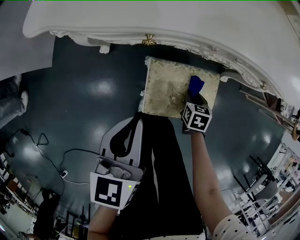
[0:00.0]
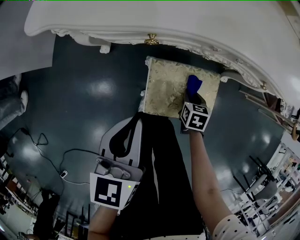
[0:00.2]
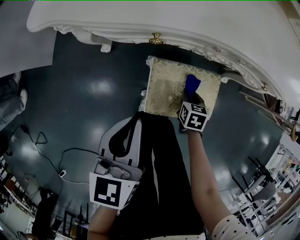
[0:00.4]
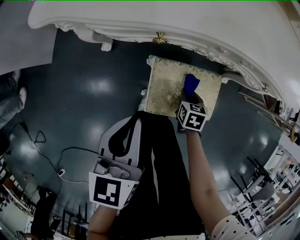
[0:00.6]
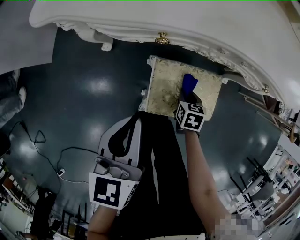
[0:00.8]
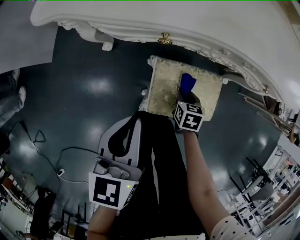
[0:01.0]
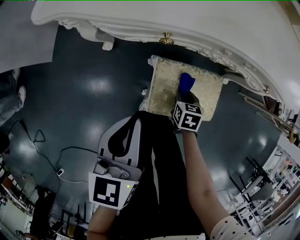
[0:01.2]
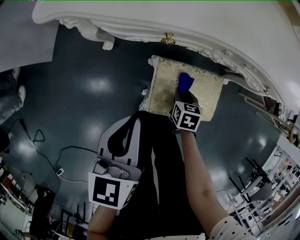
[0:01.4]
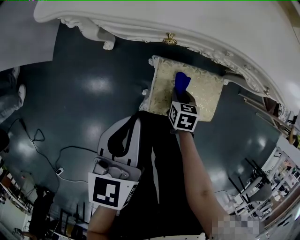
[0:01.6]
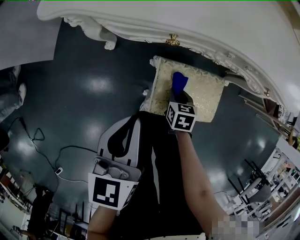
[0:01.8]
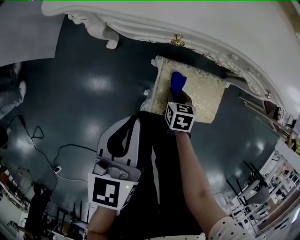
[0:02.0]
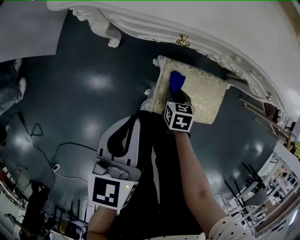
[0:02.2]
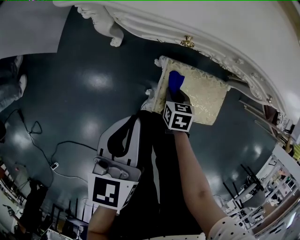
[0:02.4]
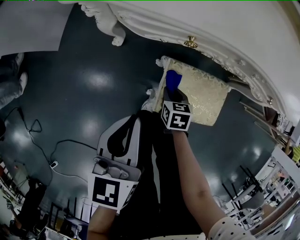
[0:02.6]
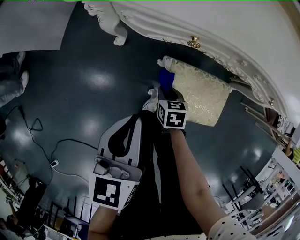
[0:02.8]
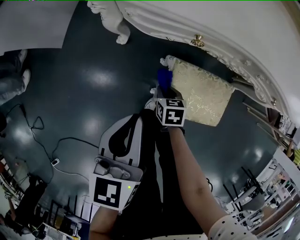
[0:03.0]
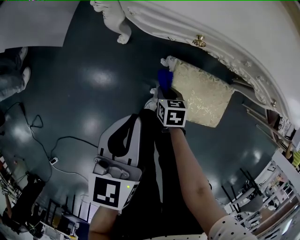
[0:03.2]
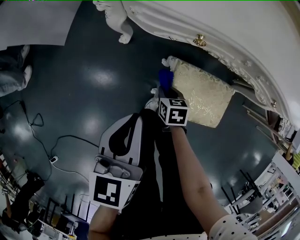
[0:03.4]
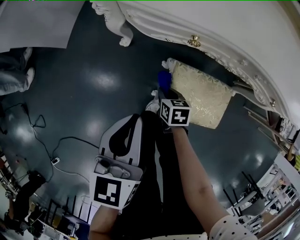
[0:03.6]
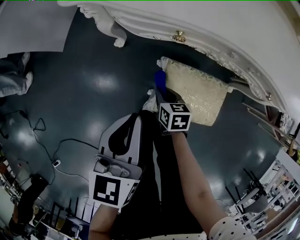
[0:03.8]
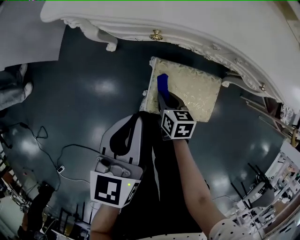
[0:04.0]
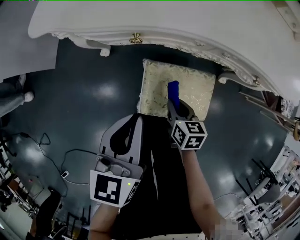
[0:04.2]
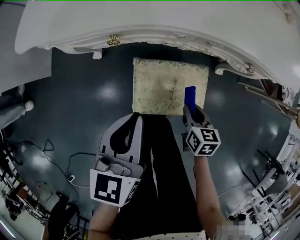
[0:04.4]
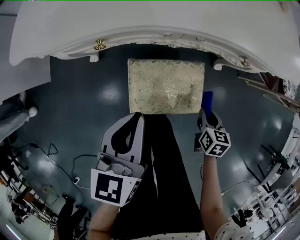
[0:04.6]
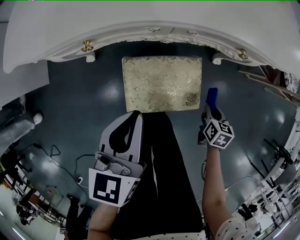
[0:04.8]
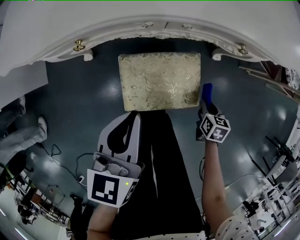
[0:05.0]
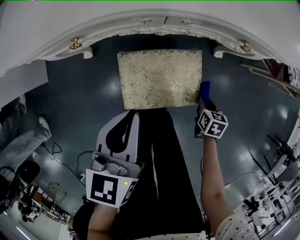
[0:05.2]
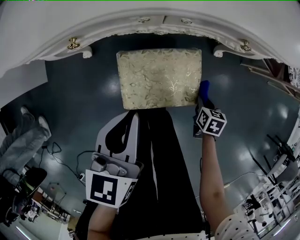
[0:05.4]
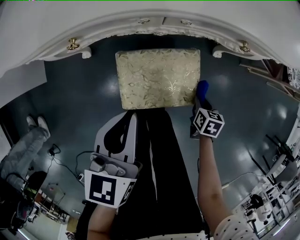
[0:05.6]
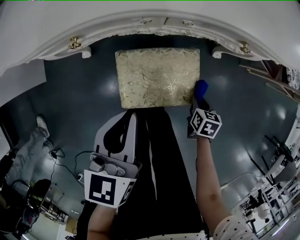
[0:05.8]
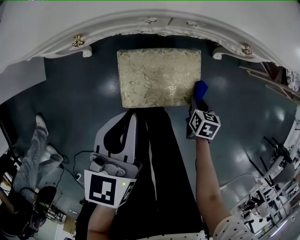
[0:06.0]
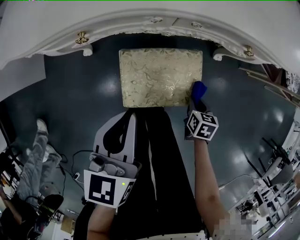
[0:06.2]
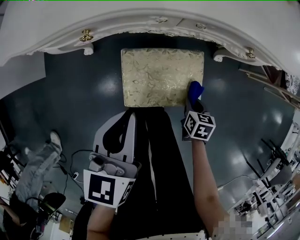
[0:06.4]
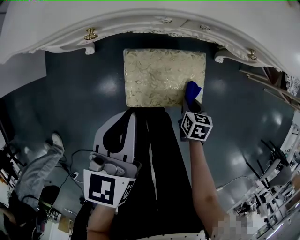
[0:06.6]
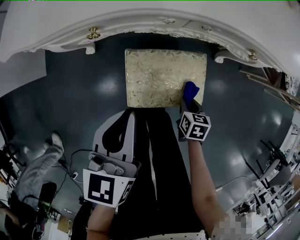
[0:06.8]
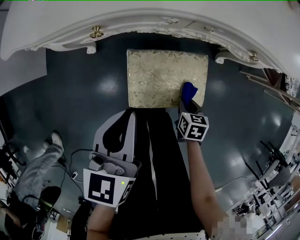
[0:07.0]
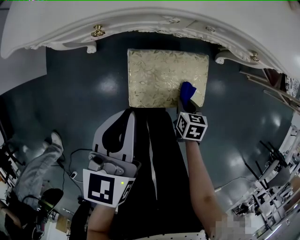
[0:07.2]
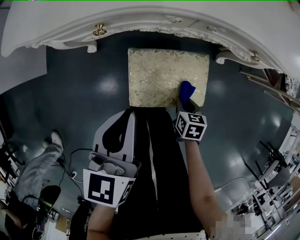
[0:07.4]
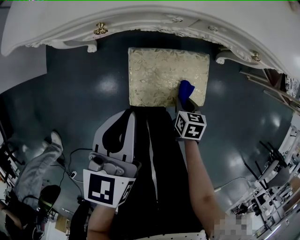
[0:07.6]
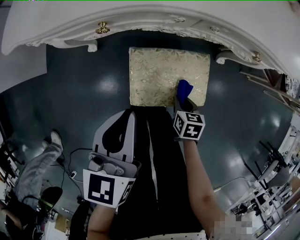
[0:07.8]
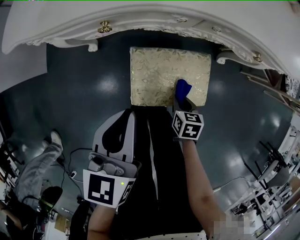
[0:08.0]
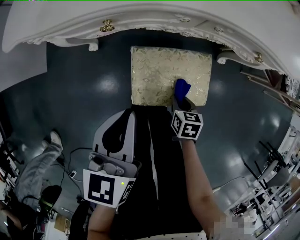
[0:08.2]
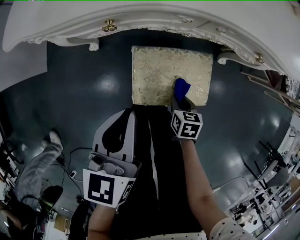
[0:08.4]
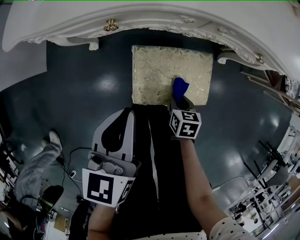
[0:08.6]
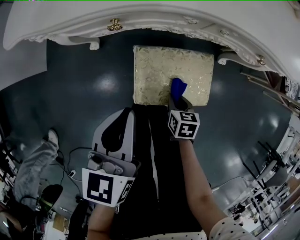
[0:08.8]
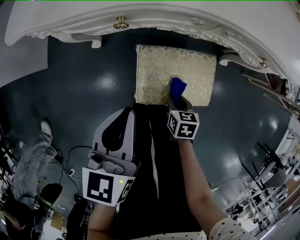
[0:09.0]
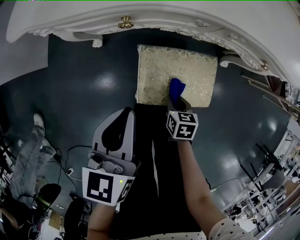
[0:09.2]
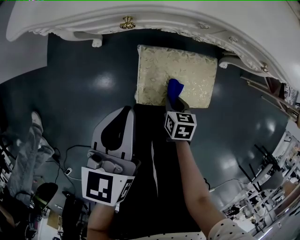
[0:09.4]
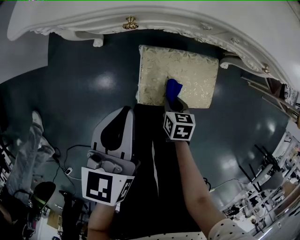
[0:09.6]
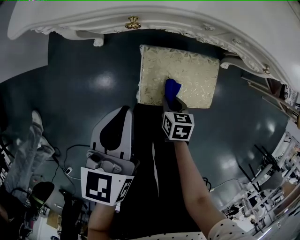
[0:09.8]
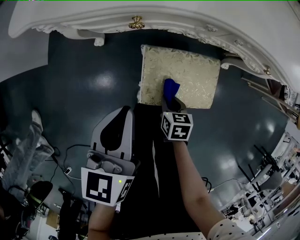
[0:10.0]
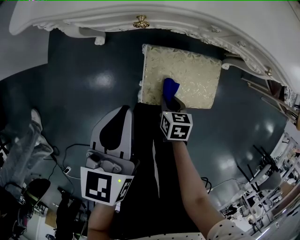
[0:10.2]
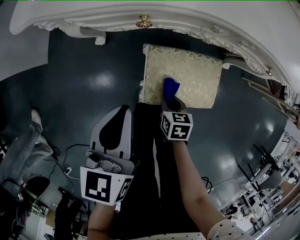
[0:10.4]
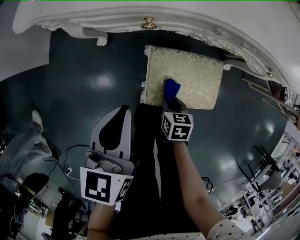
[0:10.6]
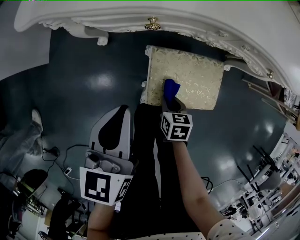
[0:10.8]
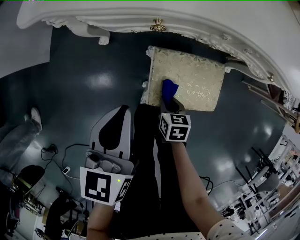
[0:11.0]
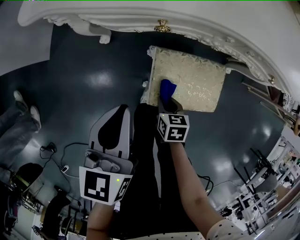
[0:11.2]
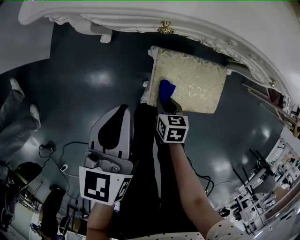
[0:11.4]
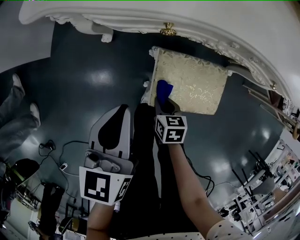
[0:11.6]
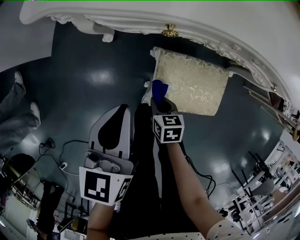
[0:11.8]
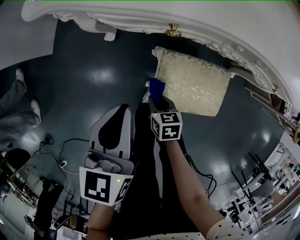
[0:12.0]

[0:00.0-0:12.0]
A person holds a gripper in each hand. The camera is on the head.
0.0 to 1.6 s: The right gripper moves to the left, about 10 cm.
1.6 to 3.0 s: The right gripper travels to the left by approximately 10 cm.
3.0 to 4.4 s: The right gripper heads to the right, upward and backward, covering about 25 cm, and changes its angle by approximately 20 degrees; the left gripper travels to the right by approximately 15 cm.
4.4 to 6.0 s: The right gripper shifts approximately 15 cm to the right and downward, while the left gripper changes place by approximately 5 cm.
6.0 to 7.6 s: The right gripper goes roughly 10 cm to the left.
7.6 to 9.0 s: The right gripper goes roughly 5 cm to the left.
9.0 to 10.4 s: The right gripper moves to the left, roughly 5 cm.
10.4 to 12.0 s: The right gripper shifts approximately 10 cm to the left.

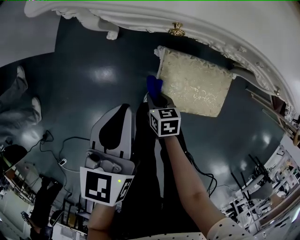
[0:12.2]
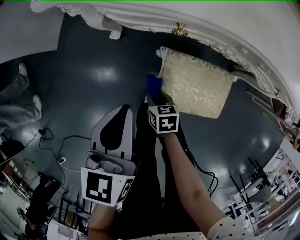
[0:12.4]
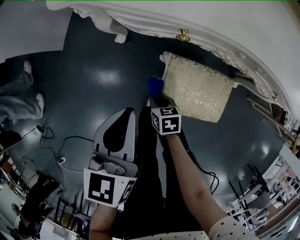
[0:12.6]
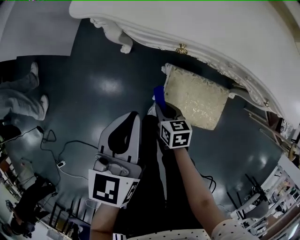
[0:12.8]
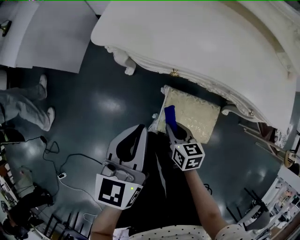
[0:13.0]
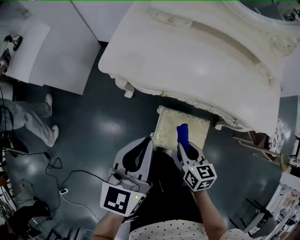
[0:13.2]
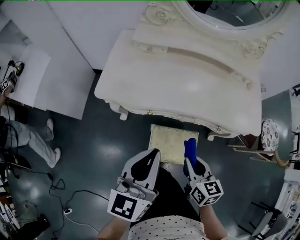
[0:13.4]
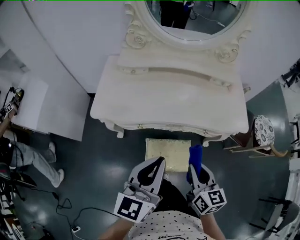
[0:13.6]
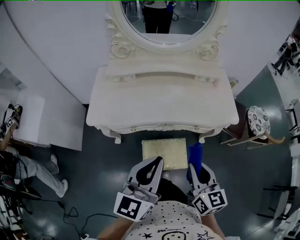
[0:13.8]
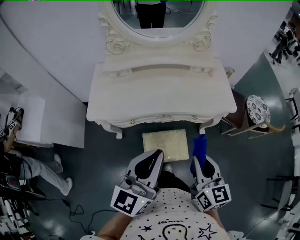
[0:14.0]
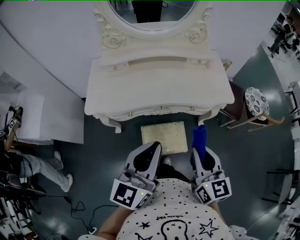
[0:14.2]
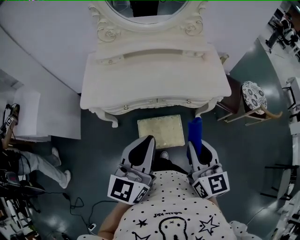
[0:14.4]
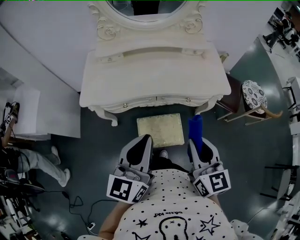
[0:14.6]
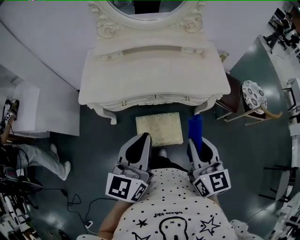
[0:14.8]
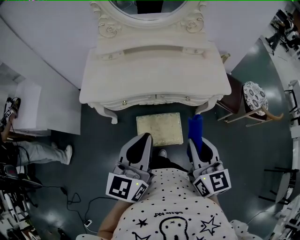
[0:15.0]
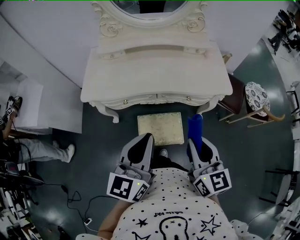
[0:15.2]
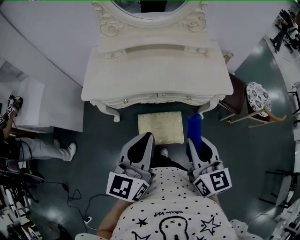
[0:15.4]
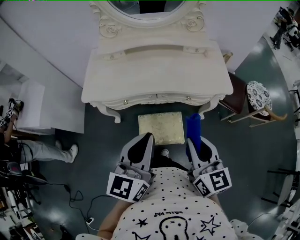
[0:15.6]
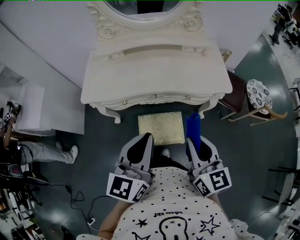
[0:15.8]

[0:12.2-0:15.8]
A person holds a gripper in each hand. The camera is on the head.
12.2 to 14.0 s: Both grippers move upward, about 50 cm. The right gripper tips its fingers upward by roughly 40 degrees, while the left gripper tips its fingers upward by approximately 30 degrees.
14.0 to 15.8 s: The left gripper ends up approximately 5 cm from where it was.

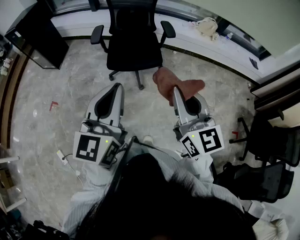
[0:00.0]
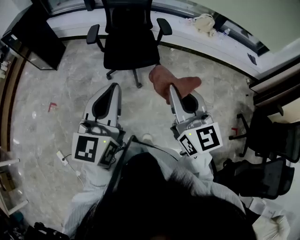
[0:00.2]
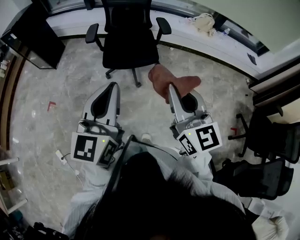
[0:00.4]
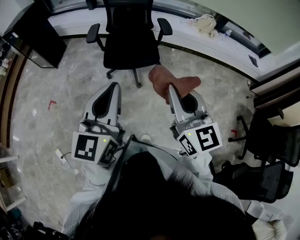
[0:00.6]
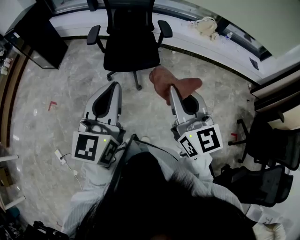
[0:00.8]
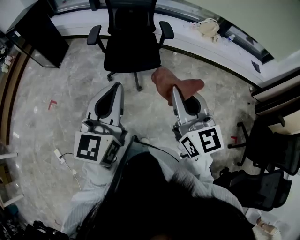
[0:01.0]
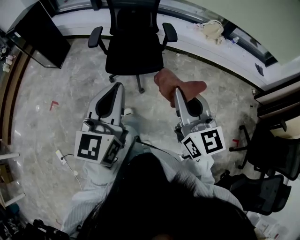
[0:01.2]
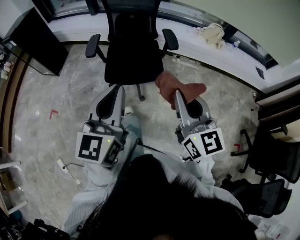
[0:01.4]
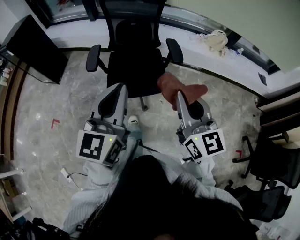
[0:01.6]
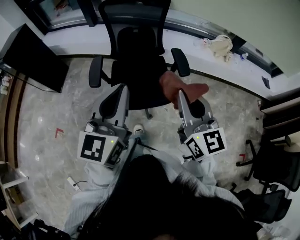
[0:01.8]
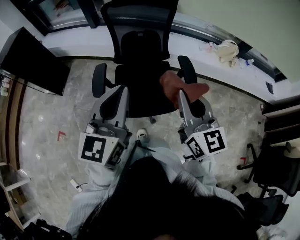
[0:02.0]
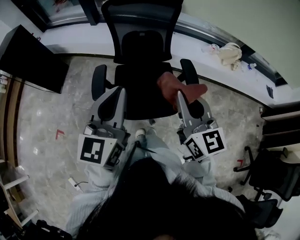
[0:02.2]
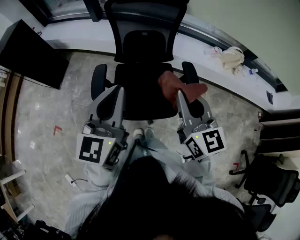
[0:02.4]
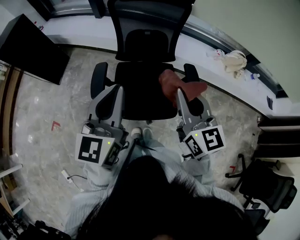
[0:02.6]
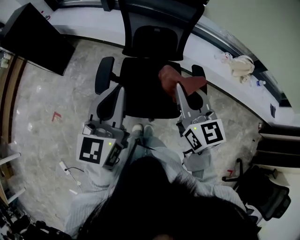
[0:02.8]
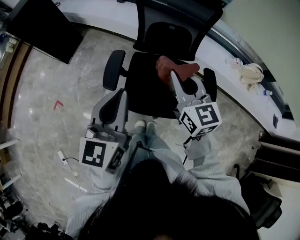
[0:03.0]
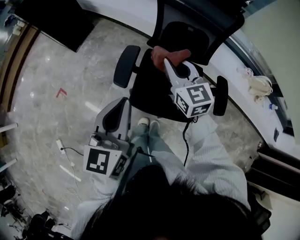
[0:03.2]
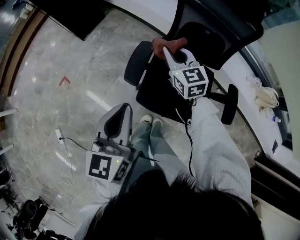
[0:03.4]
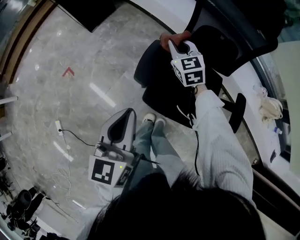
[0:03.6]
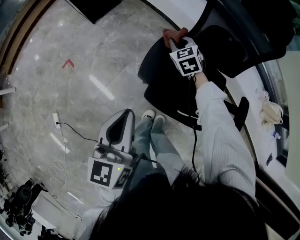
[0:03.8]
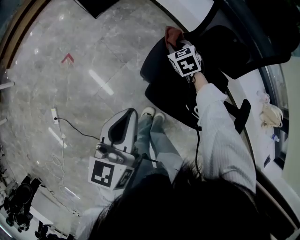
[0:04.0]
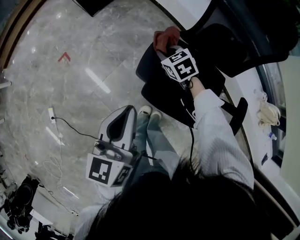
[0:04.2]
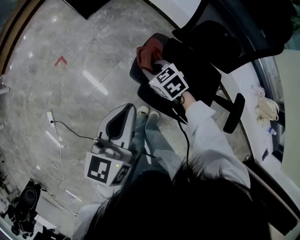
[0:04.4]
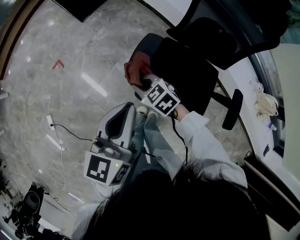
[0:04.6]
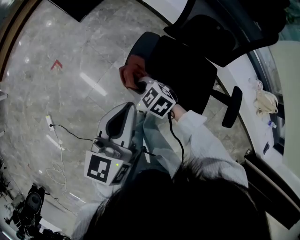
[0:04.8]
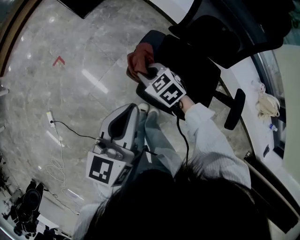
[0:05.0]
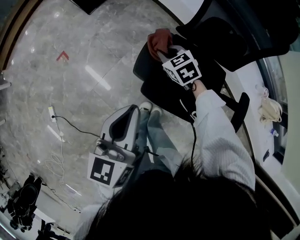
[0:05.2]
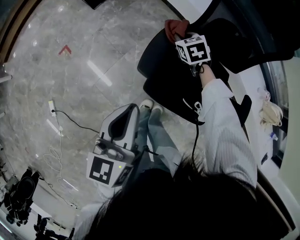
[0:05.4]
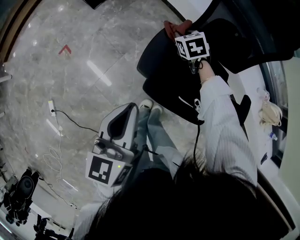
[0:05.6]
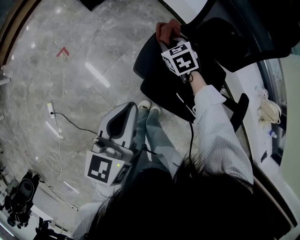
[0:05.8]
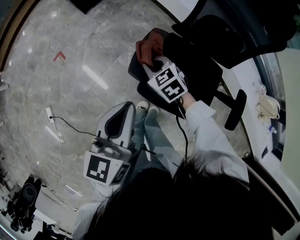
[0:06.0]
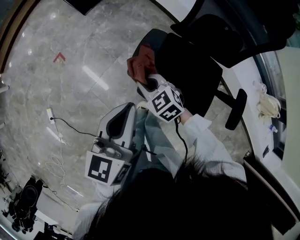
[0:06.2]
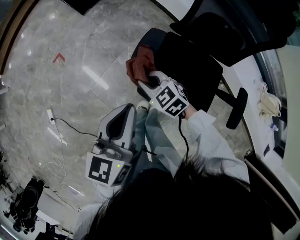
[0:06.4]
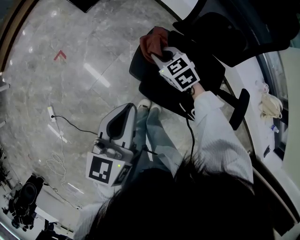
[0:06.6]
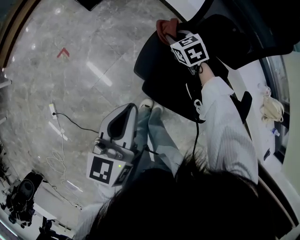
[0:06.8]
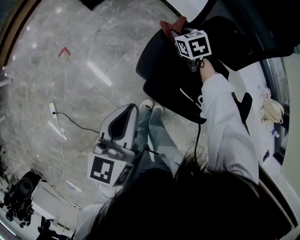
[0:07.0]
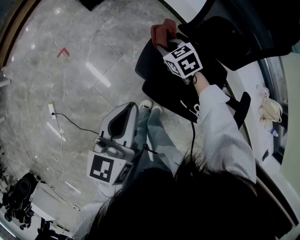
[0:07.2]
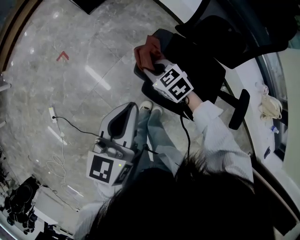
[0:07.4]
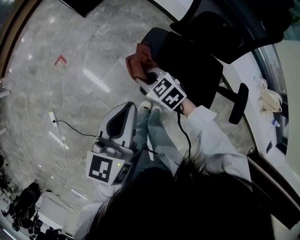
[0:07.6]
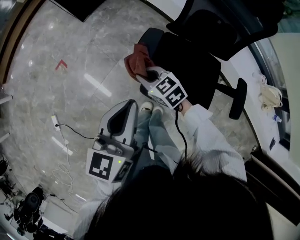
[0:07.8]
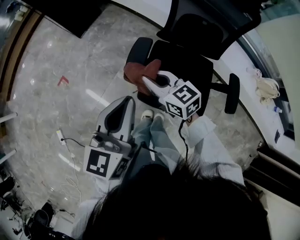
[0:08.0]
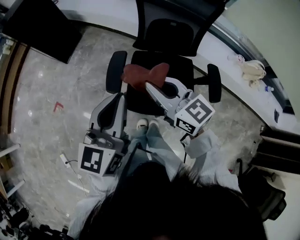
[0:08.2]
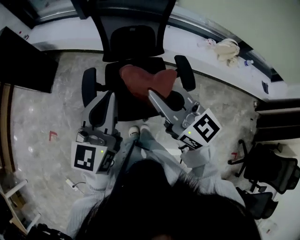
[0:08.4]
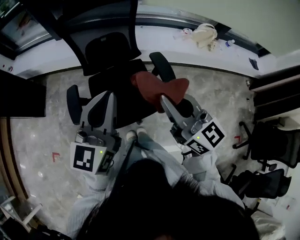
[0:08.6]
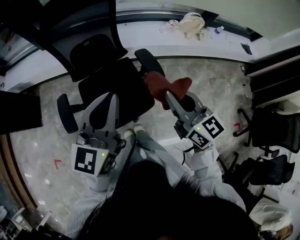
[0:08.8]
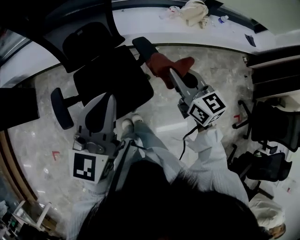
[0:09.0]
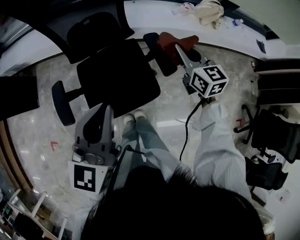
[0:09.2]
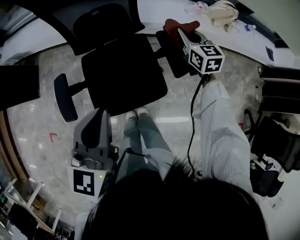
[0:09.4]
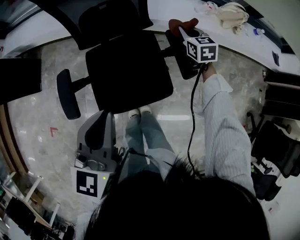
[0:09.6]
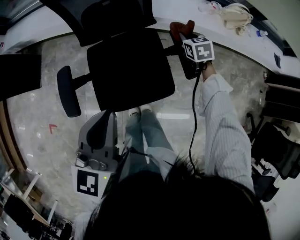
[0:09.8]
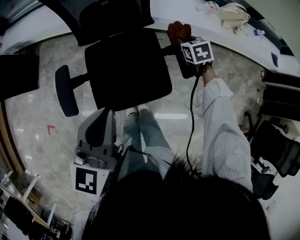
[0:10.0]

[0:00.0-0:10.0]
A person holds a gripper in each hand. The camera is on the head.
0.0 to 1.4 s: The two grippers go approximately 15 cm forward.
1.4 to 2.8 s: The two grippers travel together, forward, some 40 cm.
2.8 to 4.2 s: The left gripper changes place by approximately 25 cm, and swivels approximately 30 degrees; the right gripper moves approximately 50 cm, and tips its fingers downward by roughly 40 degrees.
4.2 to 5.8 s: The right gripper goes backward and returns, about 15 cm each way.
5.8 to 7.2 s: The right gripper goes forward and backward, approximately 20 cm each way, reversing 2 times.
7.2 to 8.6 s: The left gripper ends up approximately 35 cm from where it was, and changes its angle by about 50 degrees, while the right gripper changes place by about 60 cm, and points its fingers some 50 degrees further upward.
8.6 to 10.0 s: The left gripper travels downward by about 15 cm; the right gripper moves downward and forward, some 50 cm, and tilts its fingers some 60 degrees downward.
